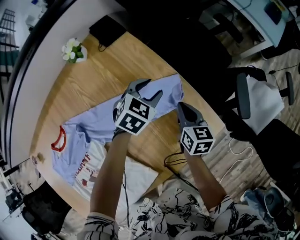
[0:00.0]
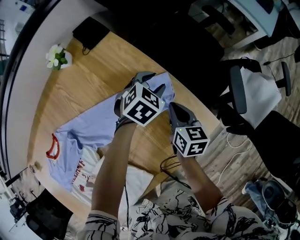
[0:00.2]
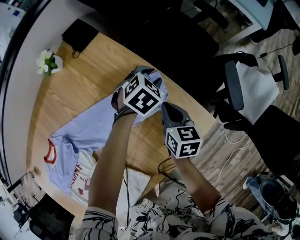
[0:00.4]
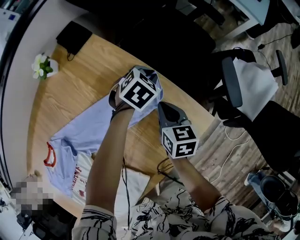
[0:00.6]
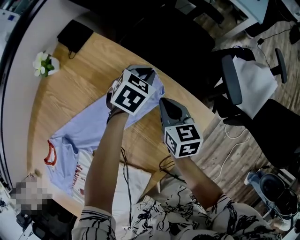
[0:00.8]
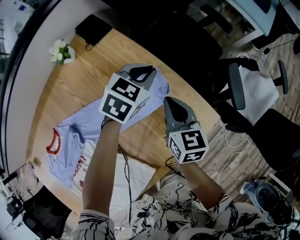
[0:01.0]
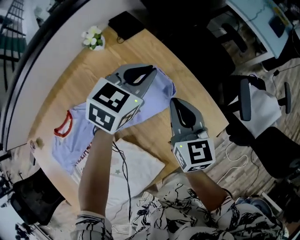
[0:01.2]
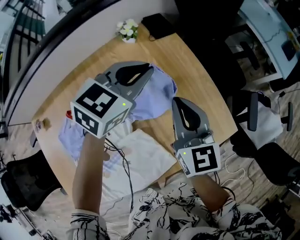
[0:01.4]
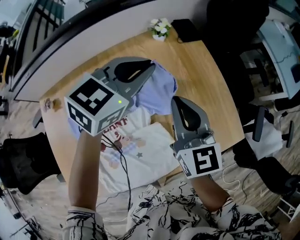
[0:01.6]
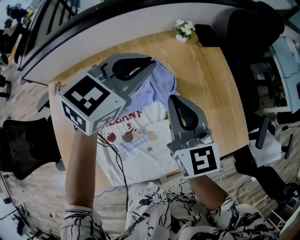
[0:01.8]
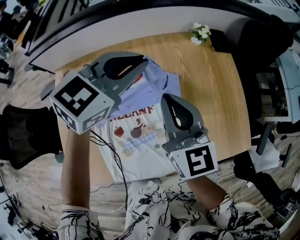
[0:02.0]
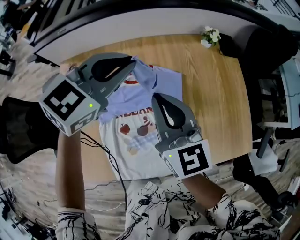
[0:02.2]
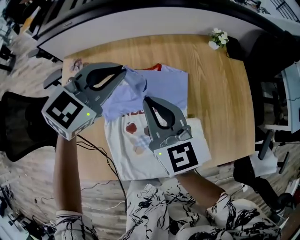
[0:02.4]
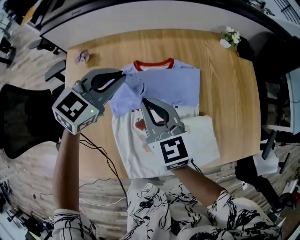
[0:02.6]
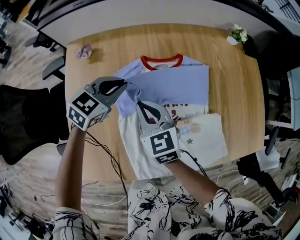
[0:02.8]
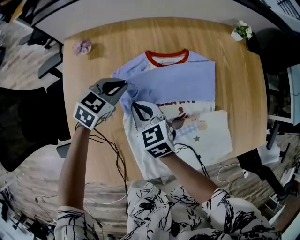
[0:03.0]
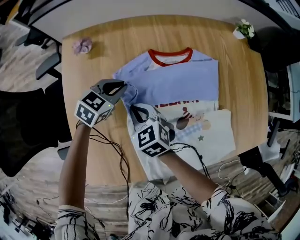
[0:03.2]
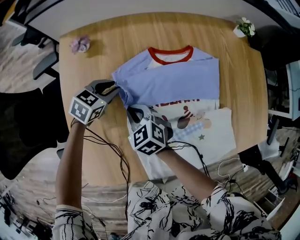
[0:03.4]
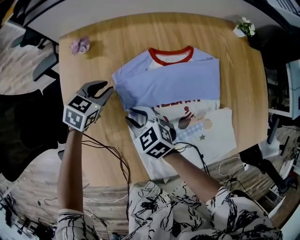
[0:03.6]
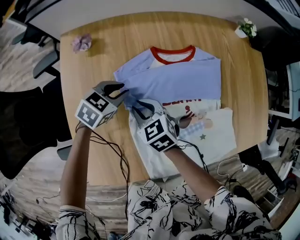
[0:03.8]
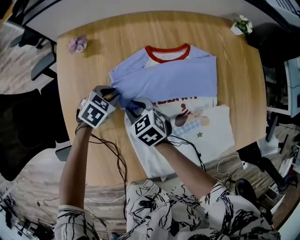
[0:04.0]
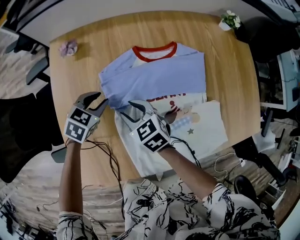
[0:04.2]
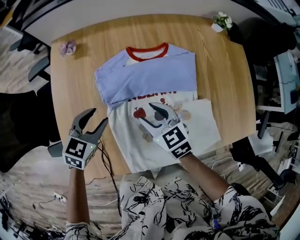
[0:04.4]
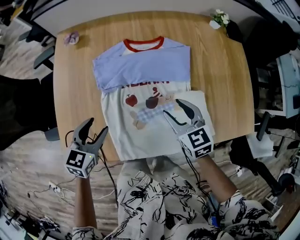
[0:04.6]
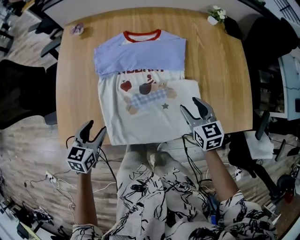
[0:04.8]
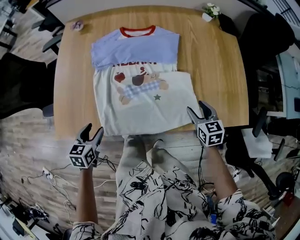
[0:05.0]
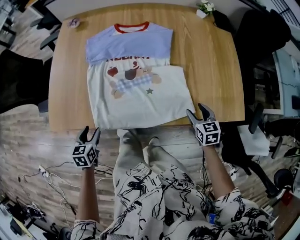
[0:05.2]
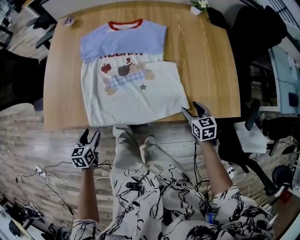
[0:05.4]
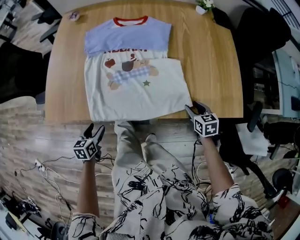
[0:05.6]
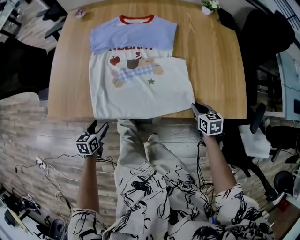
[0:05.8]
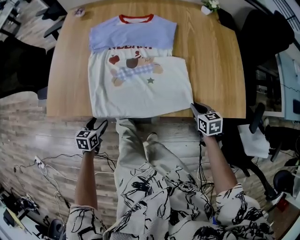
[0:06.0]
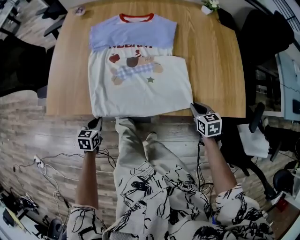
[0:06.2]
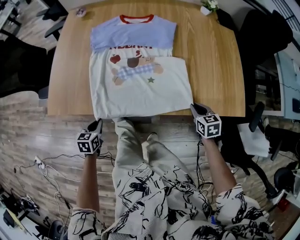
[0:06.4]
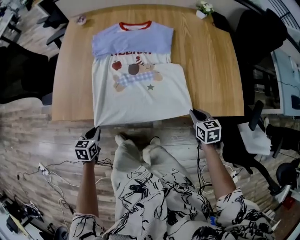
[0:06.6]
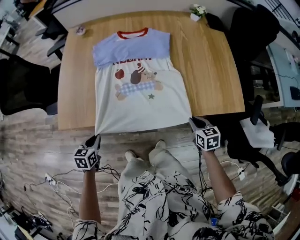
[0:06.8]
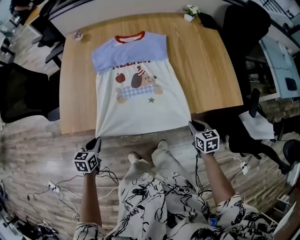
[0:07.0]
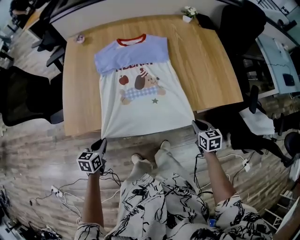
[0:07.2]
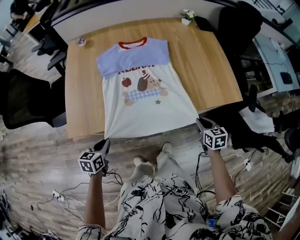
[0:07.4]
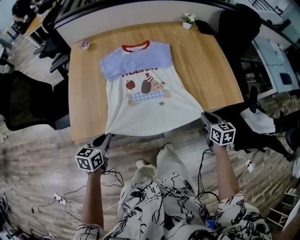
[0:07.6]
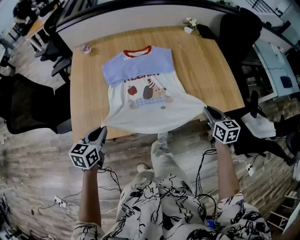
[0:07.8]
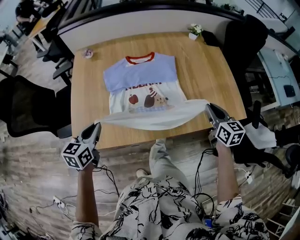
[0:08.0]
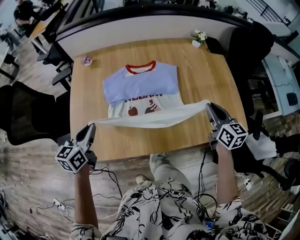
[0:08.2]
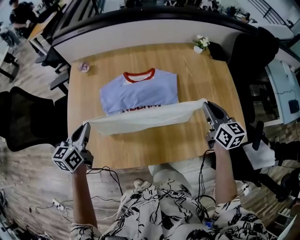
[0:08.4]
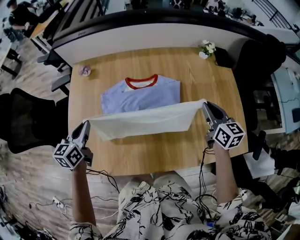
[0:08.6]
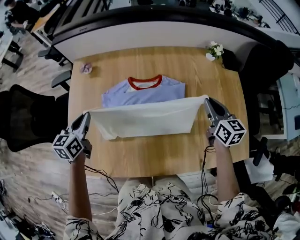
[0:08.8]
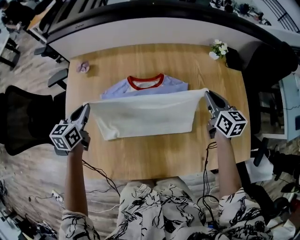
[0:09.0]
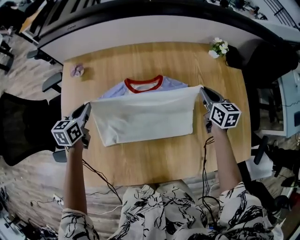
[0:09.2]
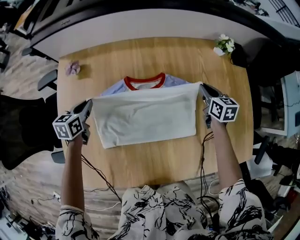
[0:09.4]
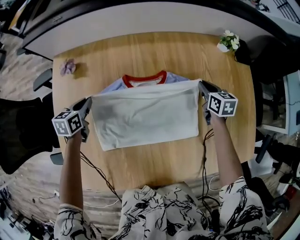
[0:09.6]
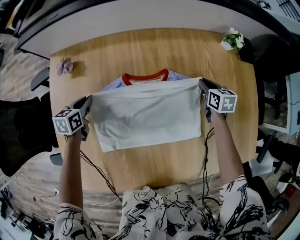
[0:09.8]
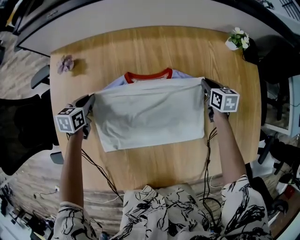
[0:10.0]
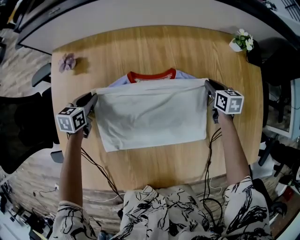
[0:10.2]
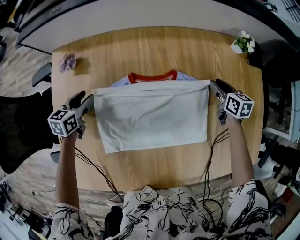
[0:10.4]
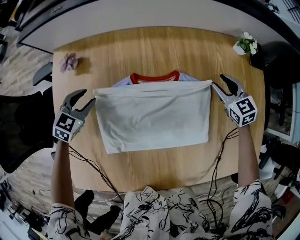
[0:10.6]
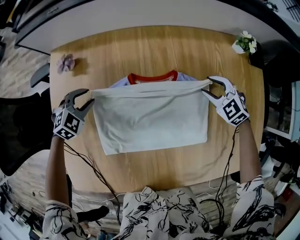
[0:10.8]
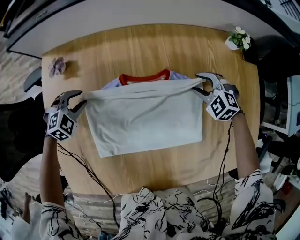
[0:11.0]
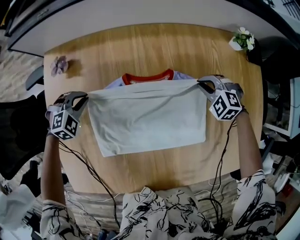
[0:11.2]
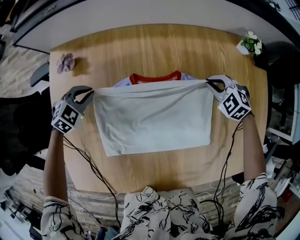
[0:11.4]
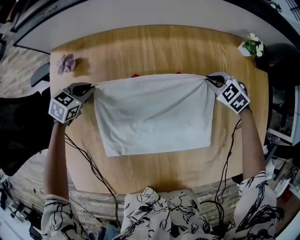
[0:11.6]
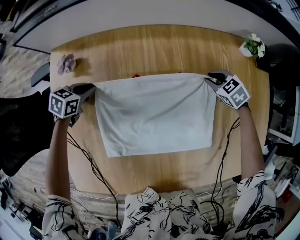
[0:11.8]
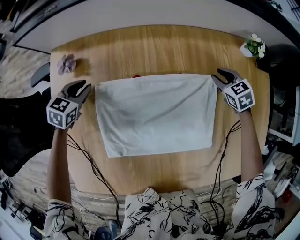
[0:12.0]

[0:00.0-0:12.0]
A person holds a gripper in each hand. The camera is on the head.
0.0 to 1.6 s: The right gripper shifts by approximately 40 cm, and rotates approximately 40 degrees; the left gripper ends up approximately 40 cm from where it was, rotates approximately 30 degrees, and closes up.
1.6 to 3.0 s: The pair of grippers is taken to the left, some 50 cm. The two grippers go approximately 25 cm downward. The right gripper swivels about 40 degrees; the left gripper changes its angle by approximately 20 degrees.
3.0 to 4.4 s: The left gripper is displaced backward by approximately 15 cm, and opens up. Meanwhile the right gripper travels to the right and backward by roughly 15 cm, and opens its fingers.
4.4 to 6.0 s: The right gripper travels to the right and backward by roughly 40 cm, and closes its fingers. The left gripper is displaced backward and downward by roughly 40 cm, and changes its angle by approximately 40 degrees.
6.0 to 7.6 s: The left gripper heads upward, covering some 20 cm, and closes up; the right gripper goes some 20 cm upward, backward and to the left.
7.6 to 9.0 s: Both grippers are carried forward, about 40 cm.
9.0 to 10.4 s: The two grippers go about 20 cm downward and forward.
10.4 to 12.0 s: The right gripper moves about 5 cm downward and comes back, and changes its angle by approximately 40 degrees, while the left gripper moves forward, approximately 5 cm, and swivels approximately 20 degrees.

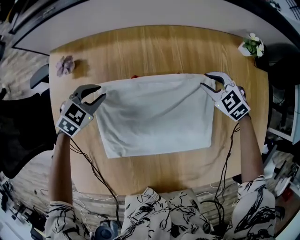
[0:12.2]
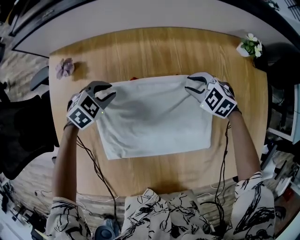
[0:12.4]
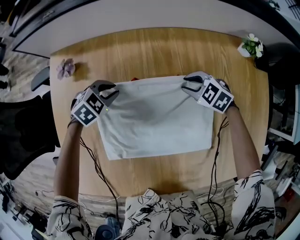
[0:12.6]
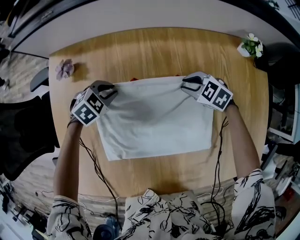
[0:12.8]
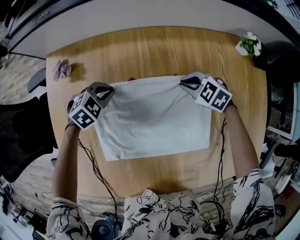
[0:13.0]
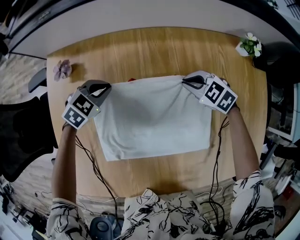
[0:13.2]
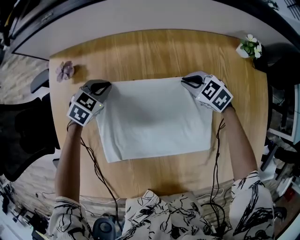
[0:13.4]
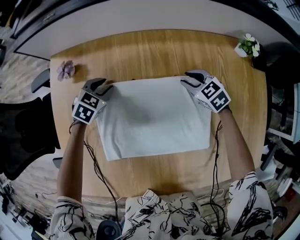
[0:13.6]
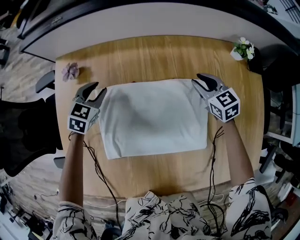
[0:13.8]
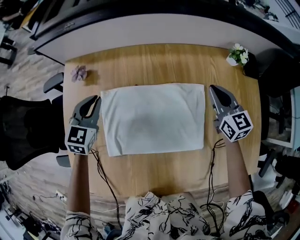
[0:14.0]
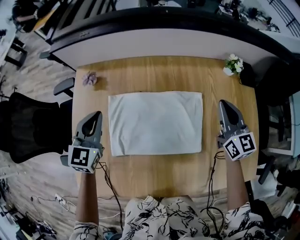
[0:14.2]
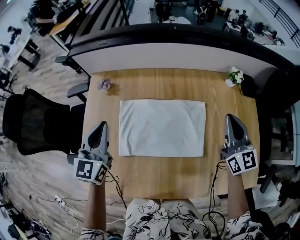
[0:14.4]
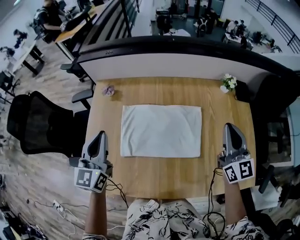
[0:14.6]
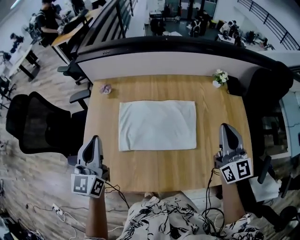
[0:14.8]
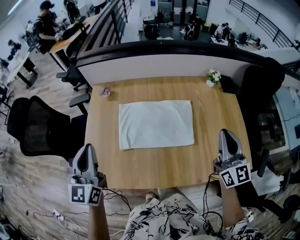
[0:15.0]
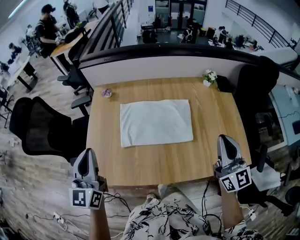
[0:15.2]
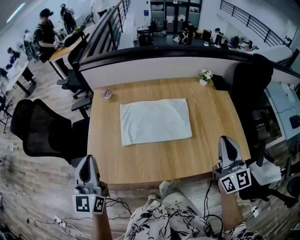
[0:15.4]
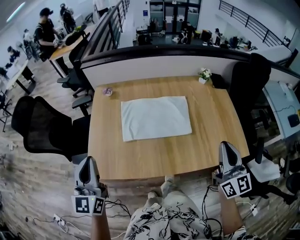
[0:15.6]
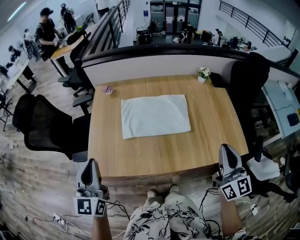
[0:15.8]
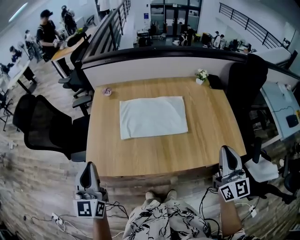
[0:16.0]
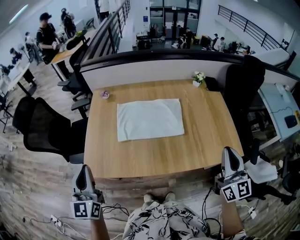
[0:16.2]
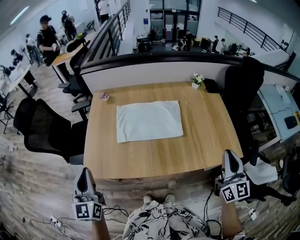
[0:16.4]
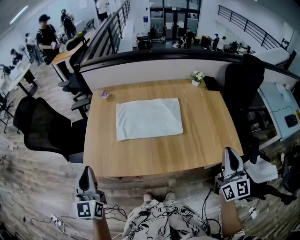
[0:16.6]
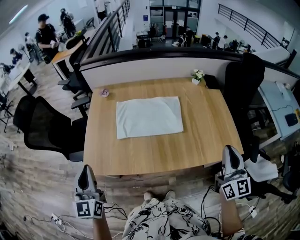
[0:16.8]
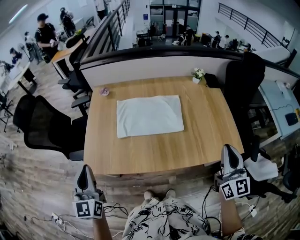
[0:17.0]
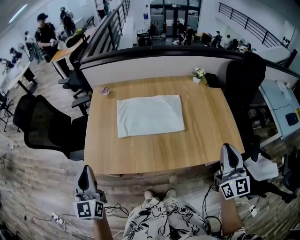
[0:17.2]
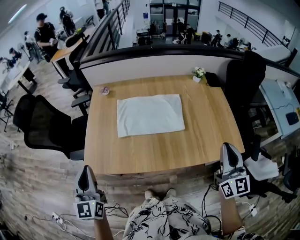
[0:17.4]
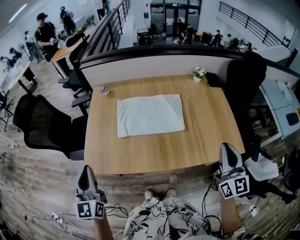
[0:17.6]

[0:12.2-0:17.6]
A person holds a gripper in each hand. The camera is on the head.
12.2 to 13.6 s: The left gripper changes place by approximately 5 cm, while the right gripper shifts by approximately 5 cm.
13.6 to 15.0 s: Both grippers move upward and backward, approximately 60 cm. The left gripper tilts its fingers approximately 60 degrees upward. Meanwhile the right gripper tips its fingers upward by some 60 degrees.
15.0 to 16.2 s: The grippers both shift backward by approximately 20 cm.
16.2 to 17.6 s: There are only small adjustments of the grippers.

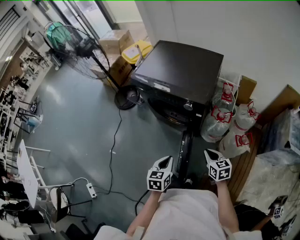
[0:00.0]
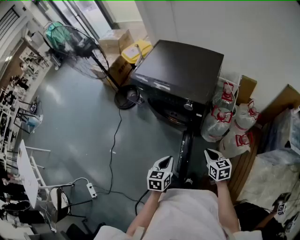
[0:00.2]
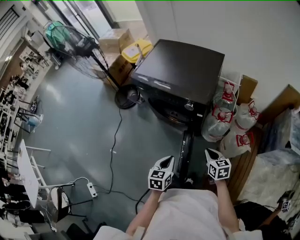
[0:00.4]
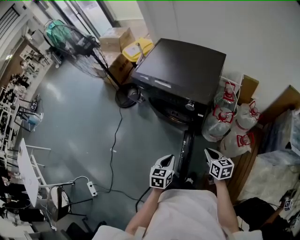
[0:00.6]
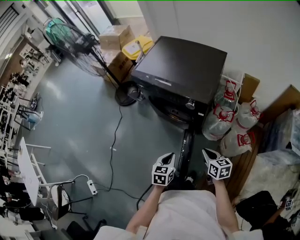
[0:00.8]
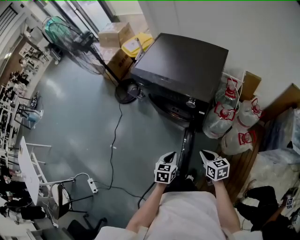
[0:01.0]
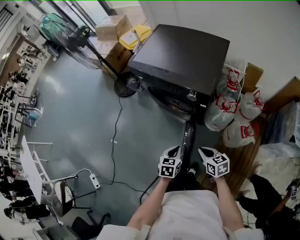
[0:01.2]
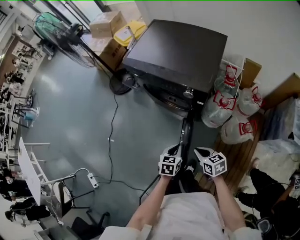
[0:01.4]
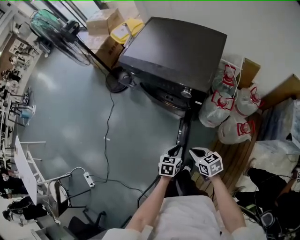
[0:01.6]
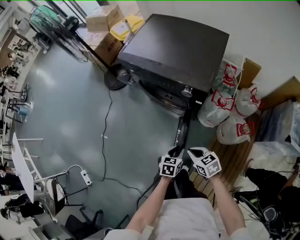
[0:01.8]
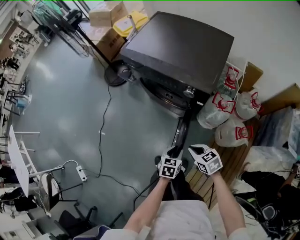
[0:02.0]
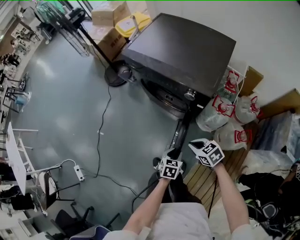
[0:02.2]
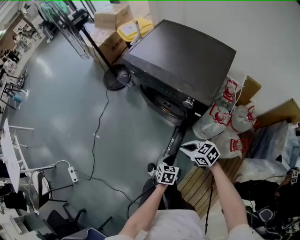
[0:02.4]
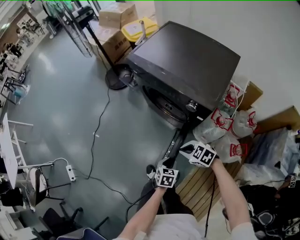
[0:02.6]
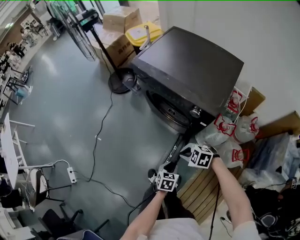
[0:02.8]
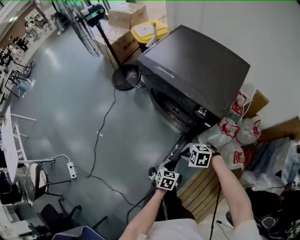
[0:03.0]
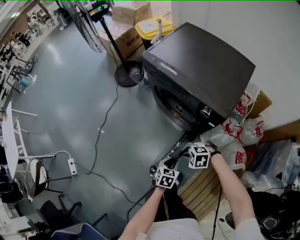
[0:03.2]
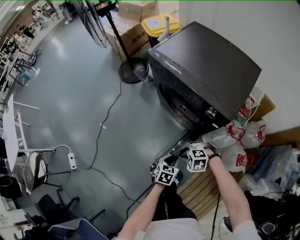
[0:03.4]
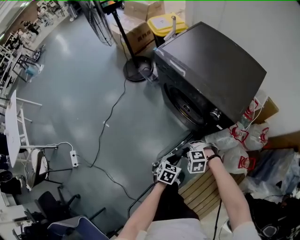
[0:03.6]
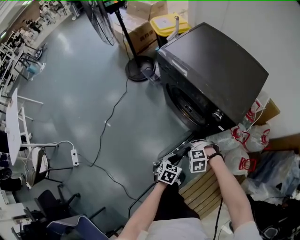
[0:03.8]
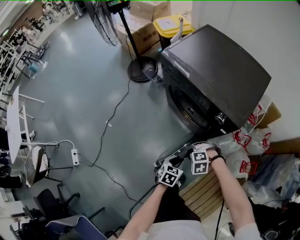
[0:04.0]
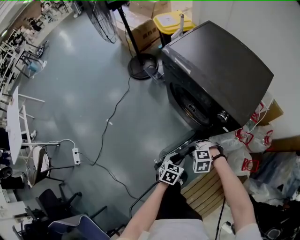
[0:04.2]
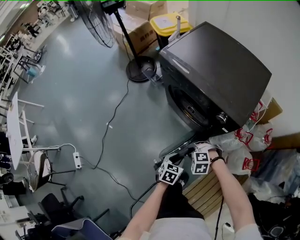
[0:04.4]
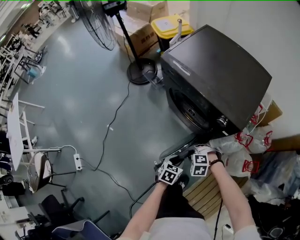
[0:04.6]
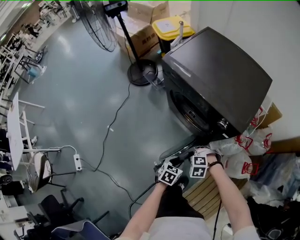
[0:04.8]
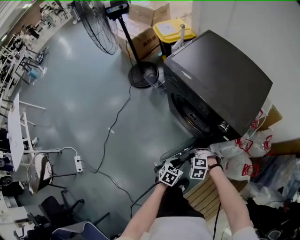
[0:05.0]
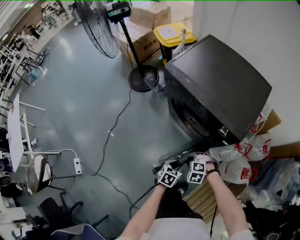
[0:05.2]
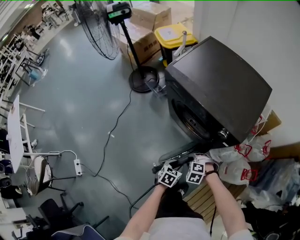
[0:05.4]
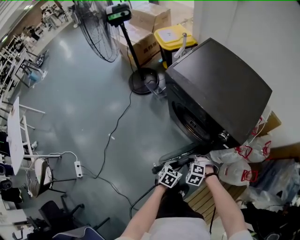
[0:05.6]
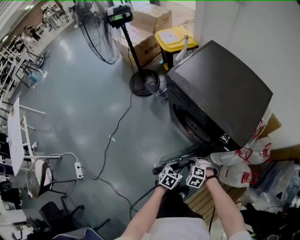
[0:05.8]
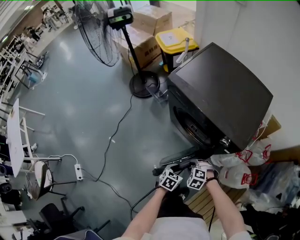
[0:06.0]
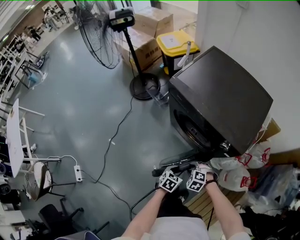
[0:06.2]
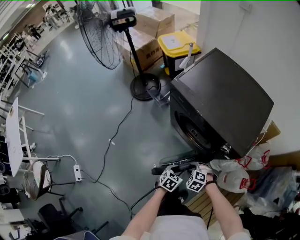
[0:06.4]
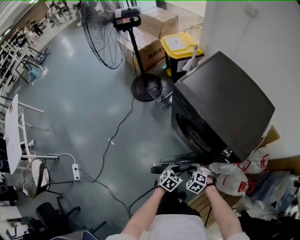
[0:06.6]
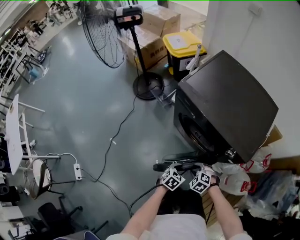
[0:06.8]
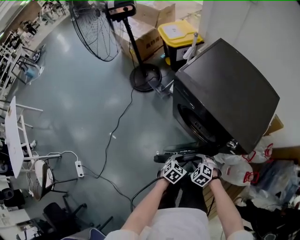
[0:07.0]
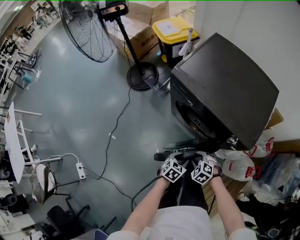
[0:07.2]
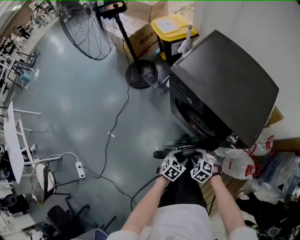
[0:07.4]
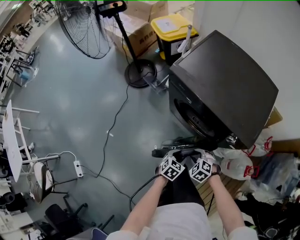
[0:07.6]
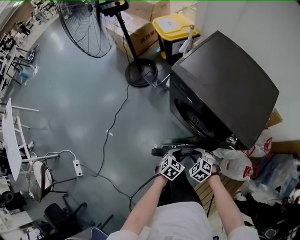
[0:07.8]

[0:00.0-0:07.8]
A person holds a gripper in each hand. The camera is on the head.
0.0 to 1.6 s: The left gripper travels downward and to the right by about 15 cm; the right gripper is displaced to the left and downward by about 10 cm, and rotates about 20 degrees.
1.6 to 3.2 s: The right gripper changes place by some 10 cm, and rotates around the line of its fingers by roughly 70 degrees, counterclockwise from behind. Meanwhile the left gripper ends up approximately 5 cm from where it was.
3.2 to 4.6 s: The left gripper moves some 5 cm. Meanwhile the right gripper shifts by some 5 cm, and opens up.
4.6 to 6.2 s: The right gripper ends up some 5 cm from where it was, while the left gripper ends up some 5 cm from where it was.
6.2 to 7.8 s: Both grippers travel together forward, approximately 5 cm.
